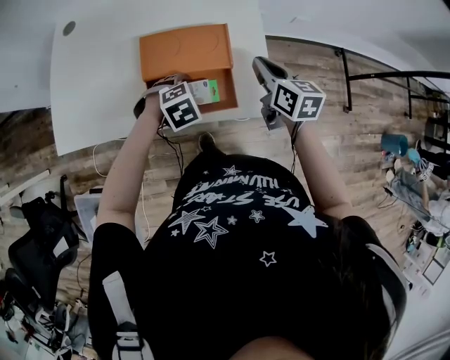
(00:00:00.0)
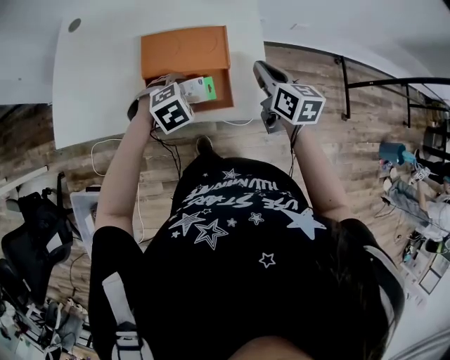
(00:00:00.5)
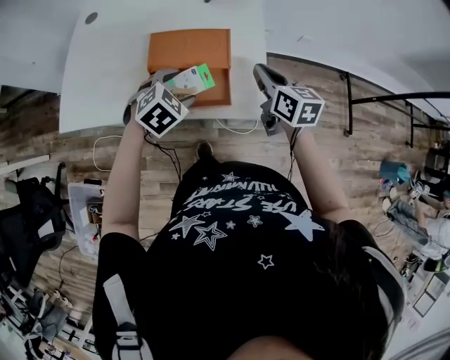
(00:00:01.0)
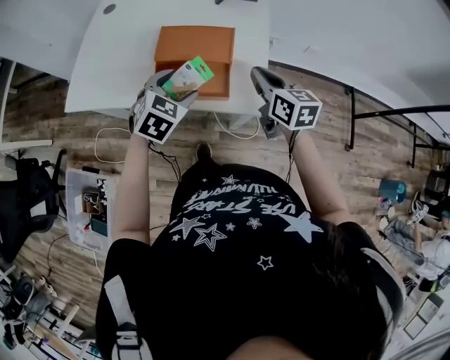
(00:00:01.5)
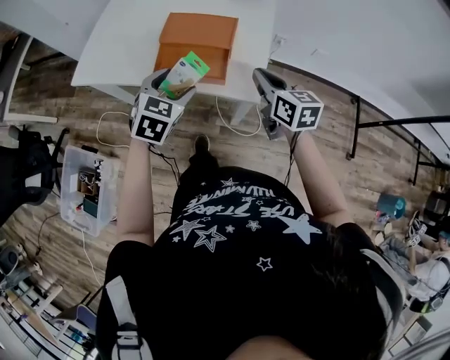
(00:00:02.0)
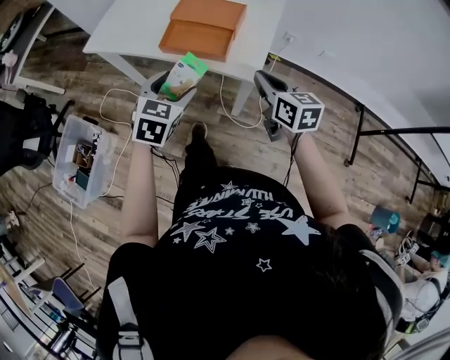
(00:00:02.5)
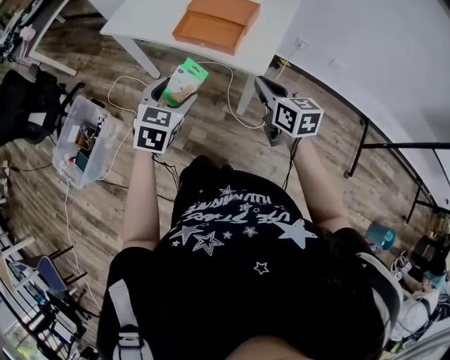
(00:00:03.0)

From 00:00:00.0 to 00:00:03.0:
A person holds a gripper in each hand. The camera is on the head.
From 00:00:00.0 to 00:00:01.5: The right gripper changes place by about 10 cm; the left gripper goes some 15 cm upward, and turns by some 50 degrees.
From 00:00:01.5 to 00:00:03.0: The two grippers go about 25 cm backward. The left gripper turns by some 30 degrees, while the right gripper rotates approximately 20 degrees.

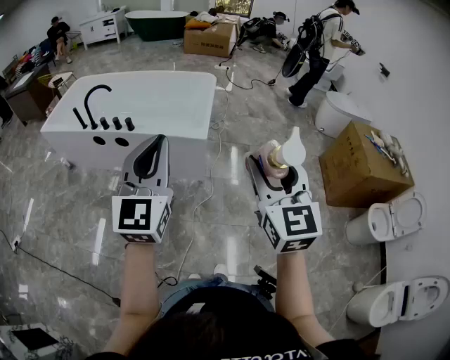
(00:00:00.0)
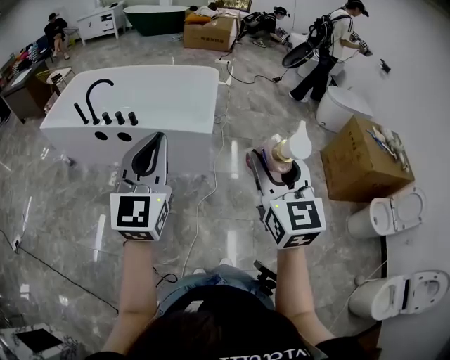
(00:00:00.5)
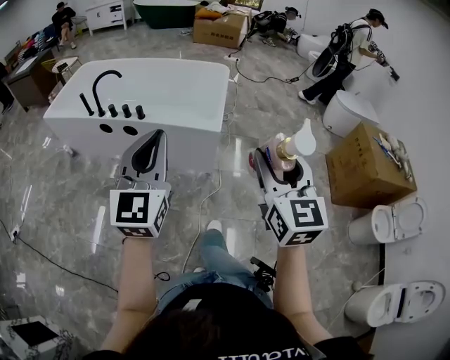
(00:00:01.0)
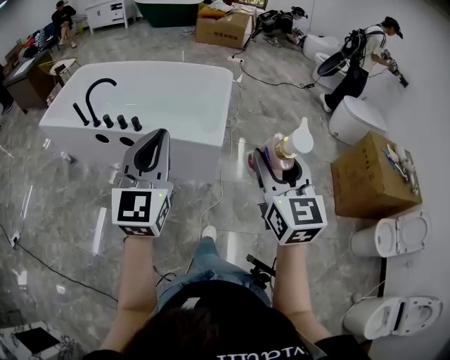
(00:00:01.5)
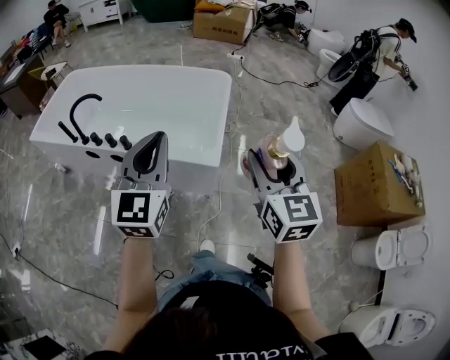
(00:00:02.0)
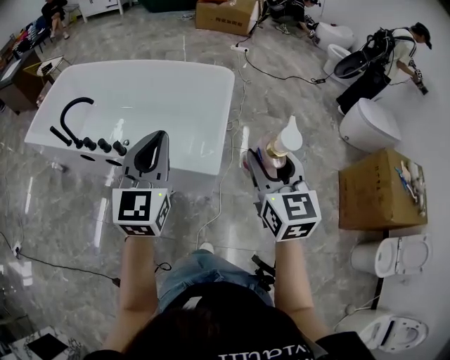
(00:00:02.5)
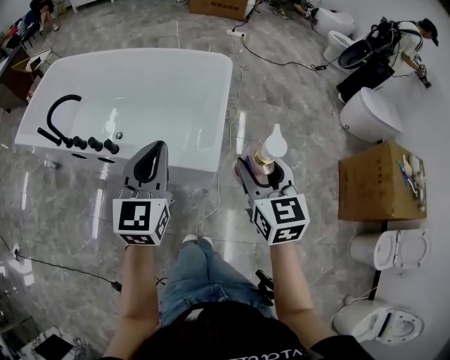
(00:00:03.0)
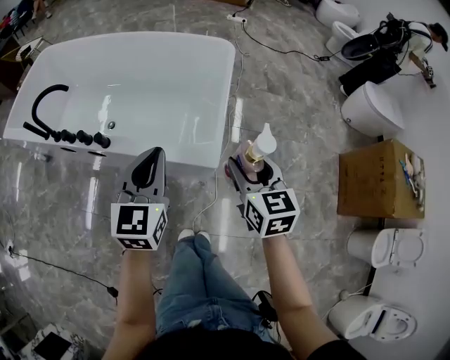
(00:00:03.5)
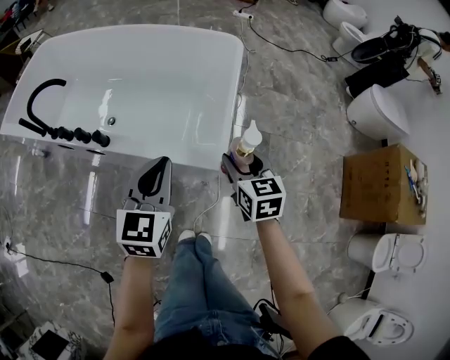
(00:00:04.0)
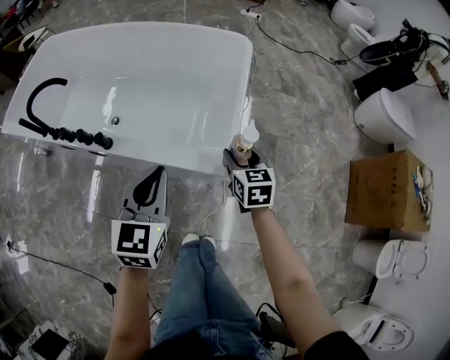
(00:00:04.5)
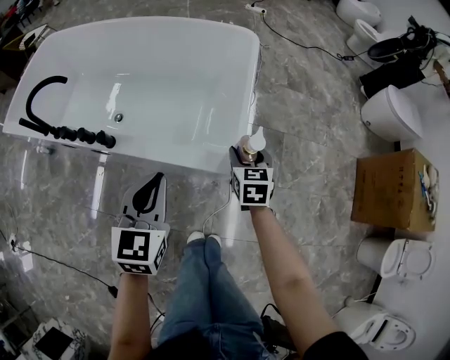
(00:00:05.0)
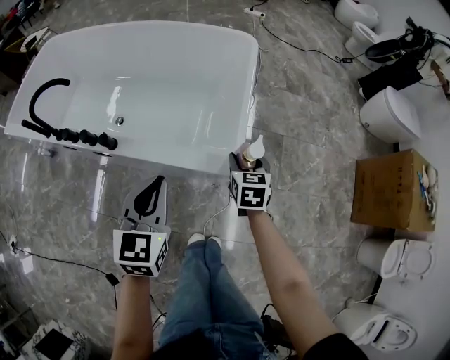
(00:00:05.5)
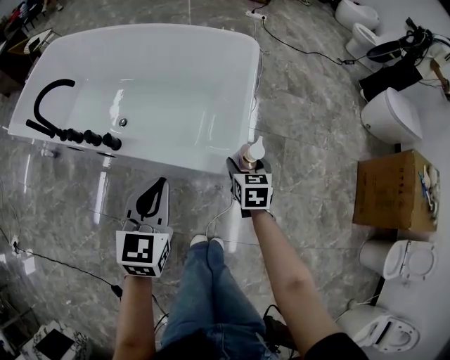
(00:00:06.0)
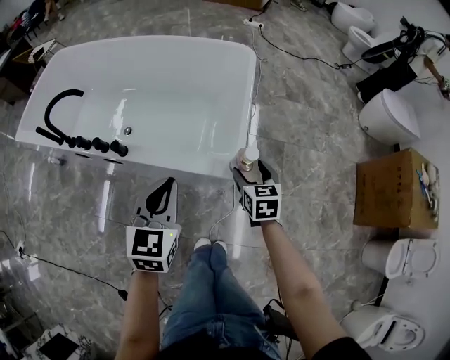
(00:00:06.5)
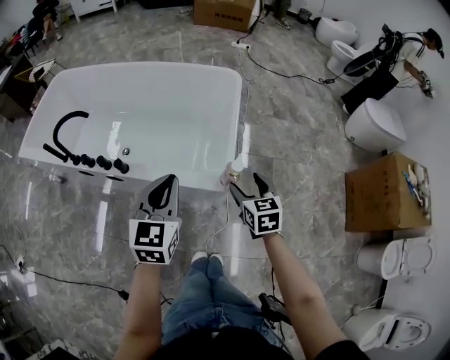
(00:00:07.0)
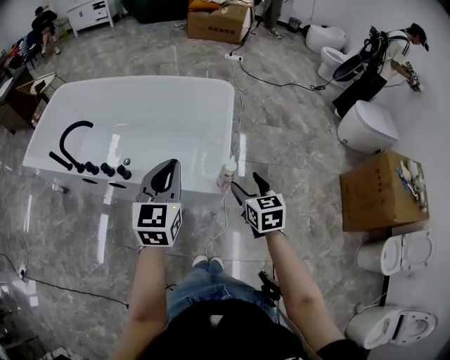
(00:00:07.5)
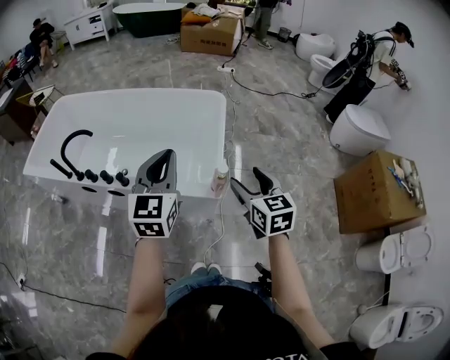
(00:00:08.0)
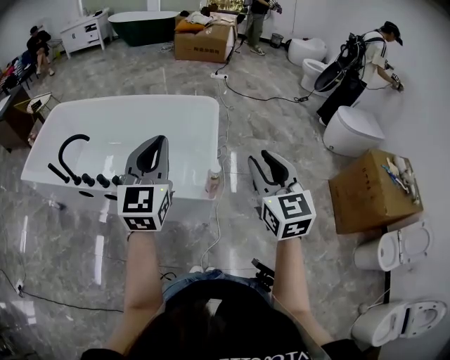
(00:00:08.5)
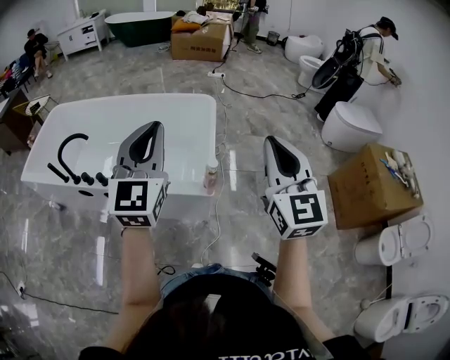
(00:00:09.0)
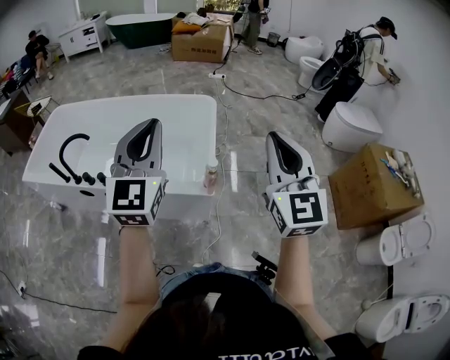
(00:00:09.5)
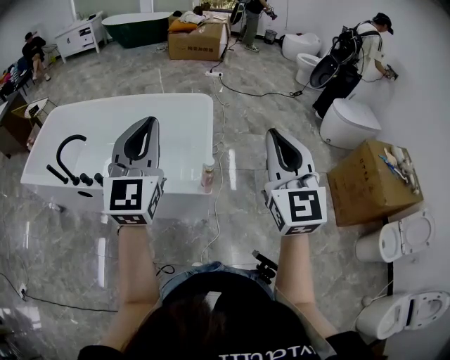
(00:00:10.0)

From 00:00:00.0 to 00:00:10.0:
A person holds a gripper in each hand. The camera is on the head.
From 00:00:00.0 to 00:00:02.0: The two grippers go roughly 35 cm forward.
From 00:00:02.0 to 00:00:04.0: The two grippers go about 35 cm downward and forward. The right gripper turns by about 30 degrees. Meanwhile the left gripper swivels some 20 degrees.
From 00:00:04.0 to 00:00:06.0: The left gripper changes place by approximately 5 cm. Meanwhile the right gripper moves downward, about 10 cm.
From 00:00:06.0 to 00:00:08.0: The right gripper shifts about 30 cm upward and backward, while the left gripper shifts some 20 cm upward.
From 00:00:08.0 to 00:00:10.0: The left gripper moves upward, about 10 cm. Meanwhile the right gripper moves upward, some 20 cm, swivels approximately 40 degrees, and closes up.

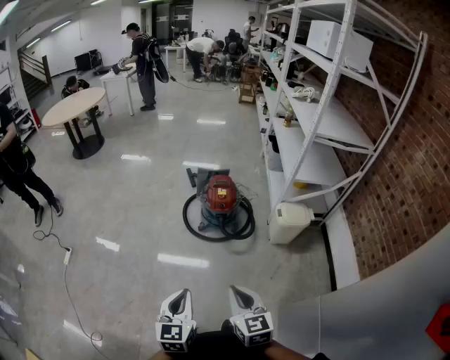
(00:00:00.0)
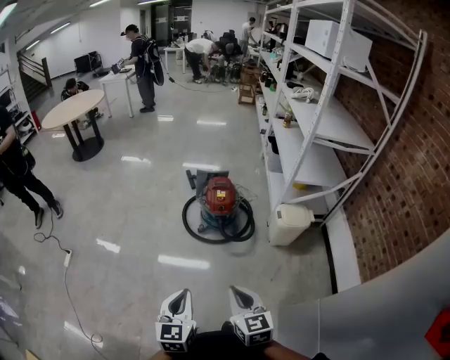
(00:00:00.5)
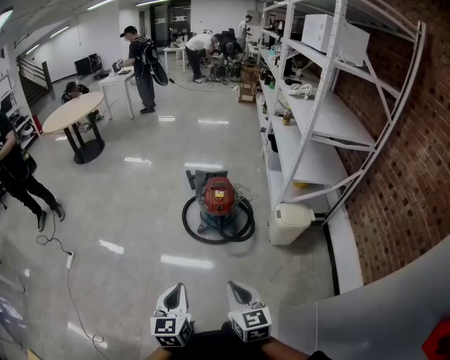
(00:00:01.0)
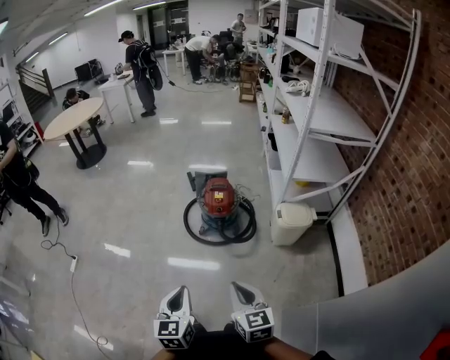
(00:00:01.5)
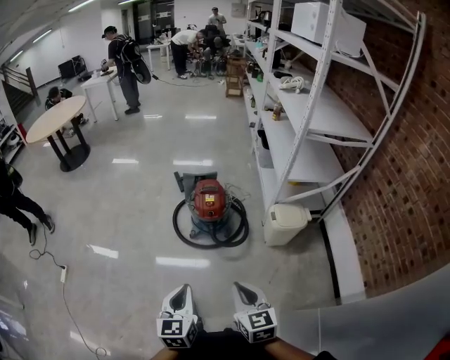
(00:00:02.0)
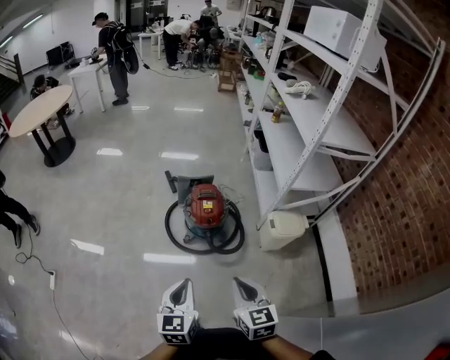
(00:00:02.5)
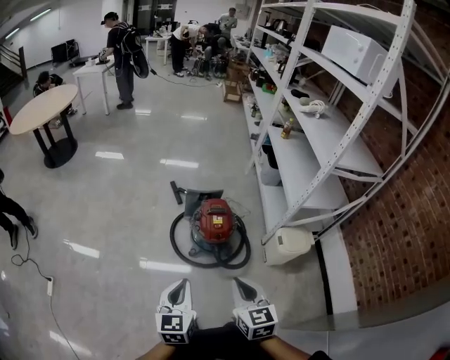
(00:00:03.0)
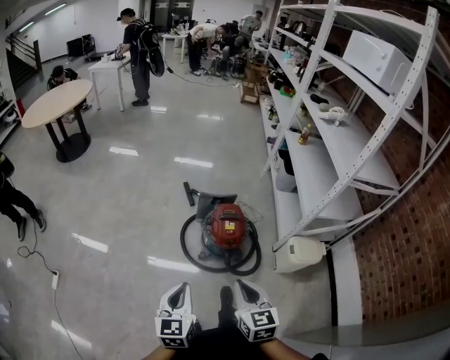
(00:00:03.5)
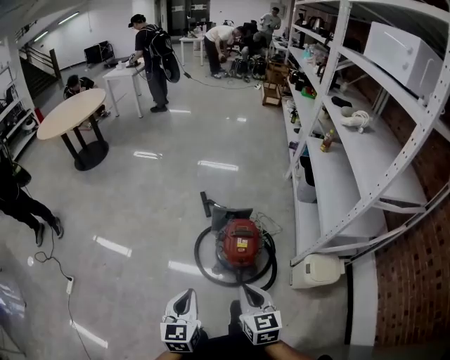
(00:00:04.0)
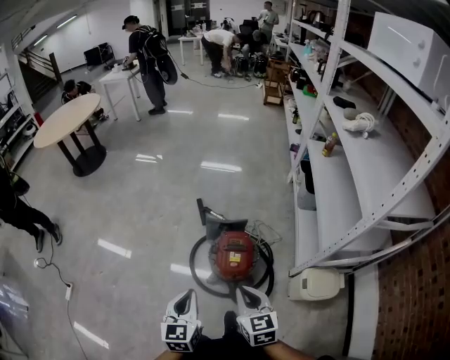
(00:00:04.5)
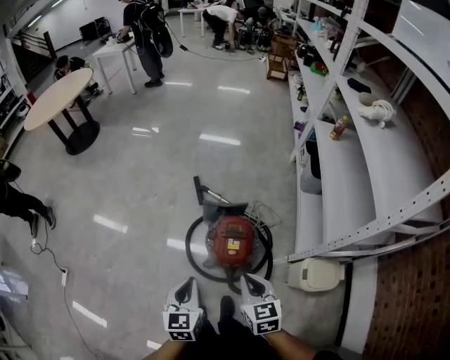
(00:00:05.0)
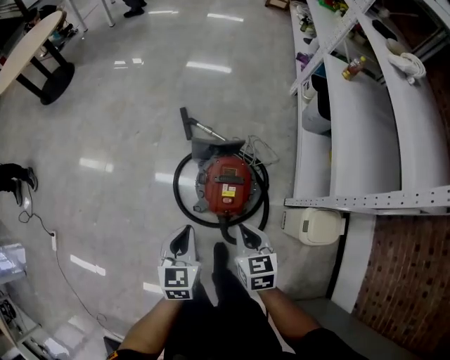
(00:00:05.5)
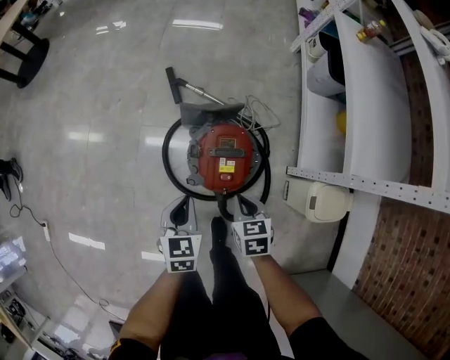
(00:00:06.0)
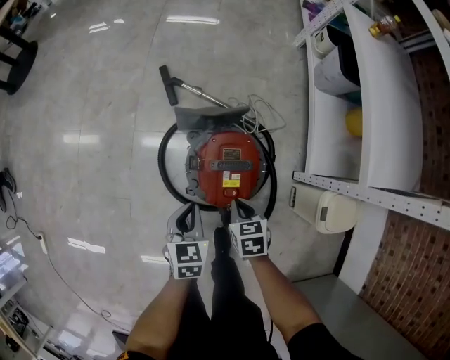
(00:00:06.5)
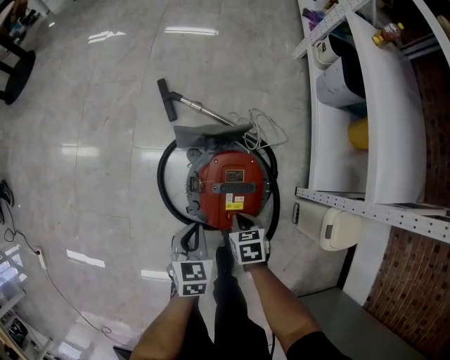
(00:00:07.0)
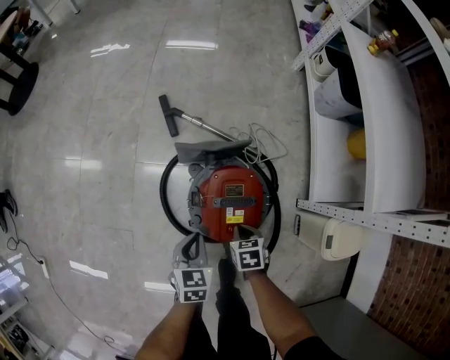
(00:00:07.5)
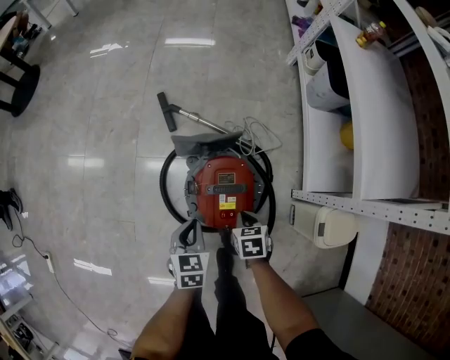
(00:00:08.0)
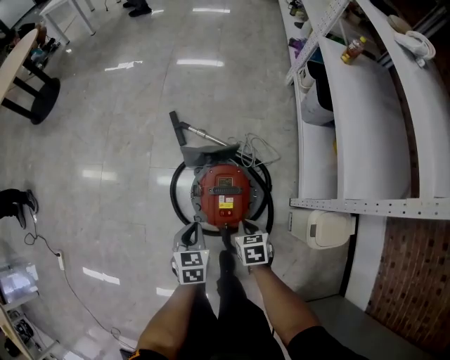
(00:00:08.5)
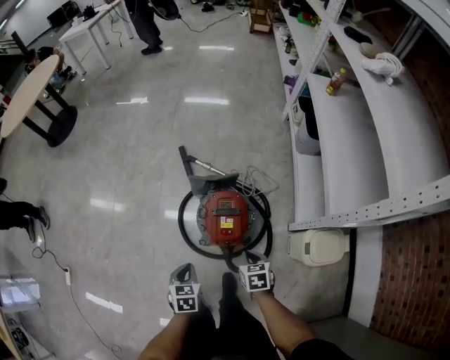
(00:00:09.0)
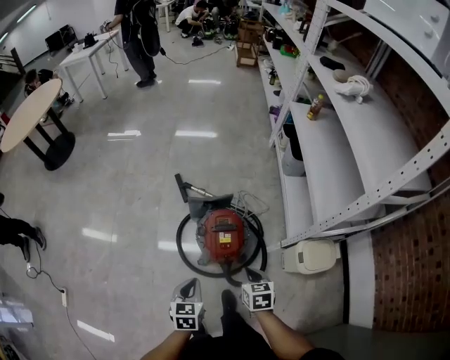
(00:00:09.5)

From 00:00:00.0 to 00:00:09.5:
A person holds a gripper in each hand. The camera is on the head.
From 00:00:00.0 to 00:00:02.0: Both grippers move forward and to the right, about 15 cm.
From 00:00:02.0 to 00:00:04.0: The two grippers go approximately 30 cm forward.
From 00:00:04.0 to 00:00:05.5: The grippers both shift forward, downward and to the right by some 25 cm.
From 00:00:05.5 to 00:00:07.5: The two grippers go about 30 cm downward. The right gripper swivels roughly 30 degrees.
From 00:00:07.5 to 00:00:09.5: The two grippers go some 30 cm upward and backward. The right gripper swivels approximately 20 degrees.

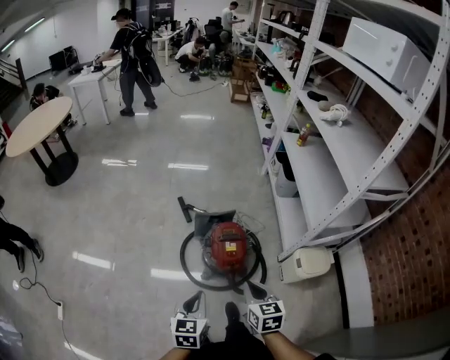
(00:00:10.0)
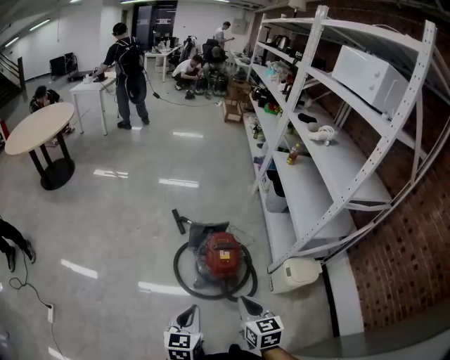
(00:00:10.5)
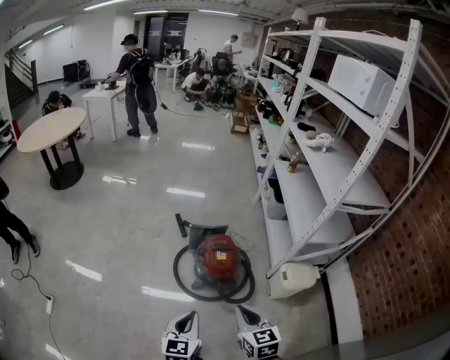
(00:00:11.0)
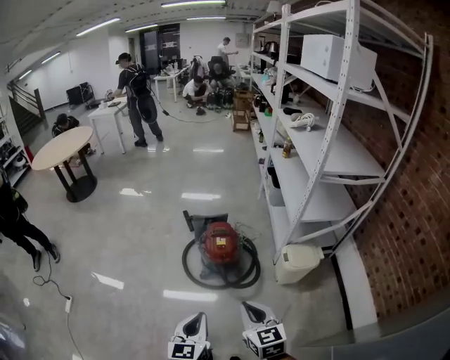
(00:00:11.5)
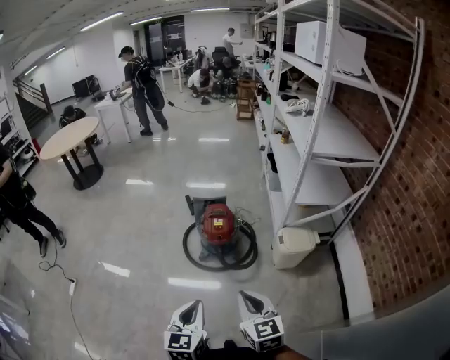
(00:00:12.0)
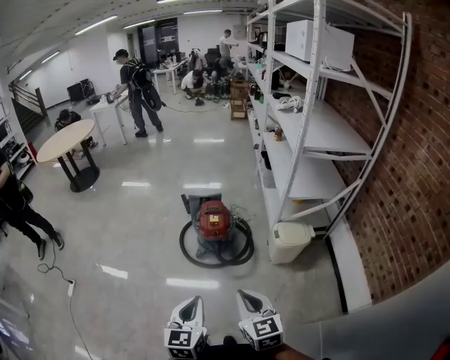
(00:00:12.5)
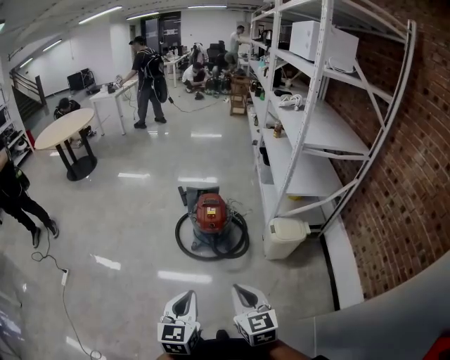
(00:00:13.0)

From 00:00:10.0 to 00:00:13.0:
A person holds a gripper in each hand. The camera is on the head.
From 00:00:10.0 to 00:00:11.5: The right gripper moves backward, some 25 cm; the left gripper goes some 30 cm backward and to the right.
From 00:00:11.5 to 00:00:13.0: Both grippers move backward, about 10 cm.
